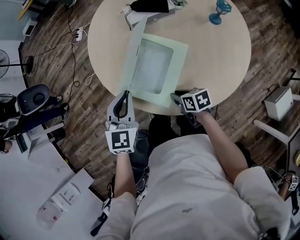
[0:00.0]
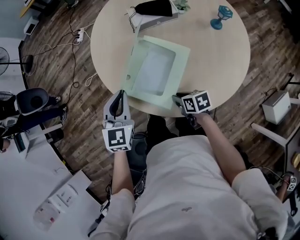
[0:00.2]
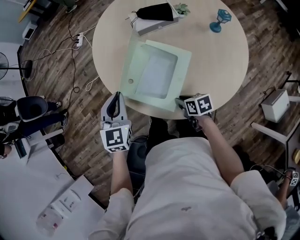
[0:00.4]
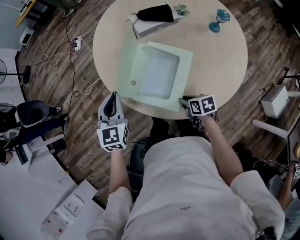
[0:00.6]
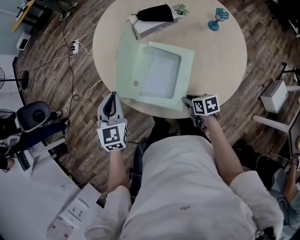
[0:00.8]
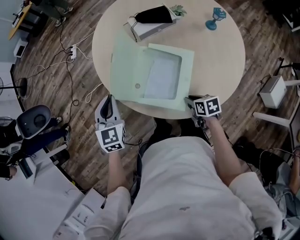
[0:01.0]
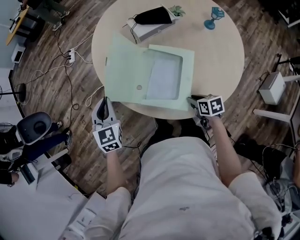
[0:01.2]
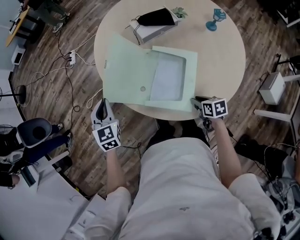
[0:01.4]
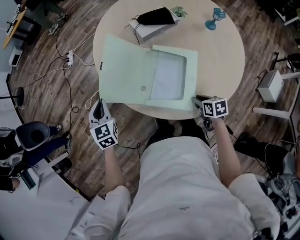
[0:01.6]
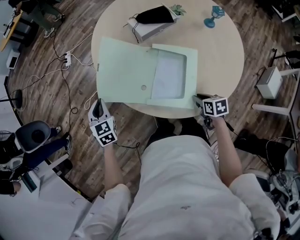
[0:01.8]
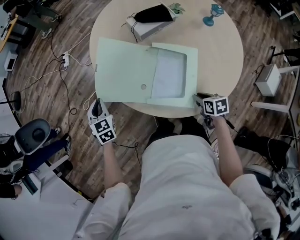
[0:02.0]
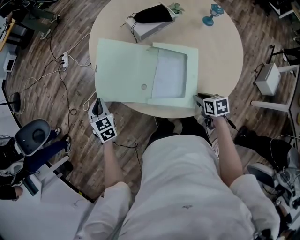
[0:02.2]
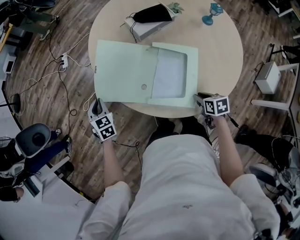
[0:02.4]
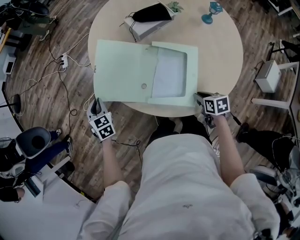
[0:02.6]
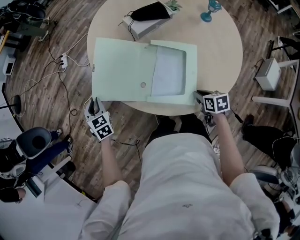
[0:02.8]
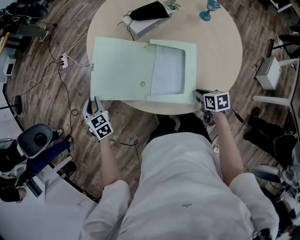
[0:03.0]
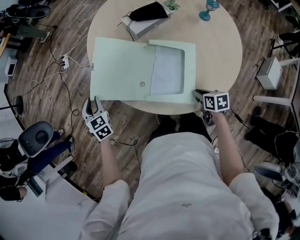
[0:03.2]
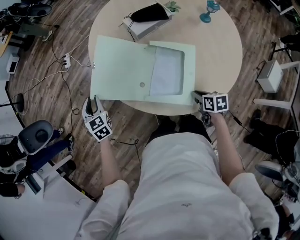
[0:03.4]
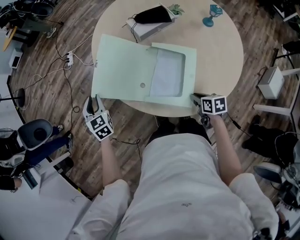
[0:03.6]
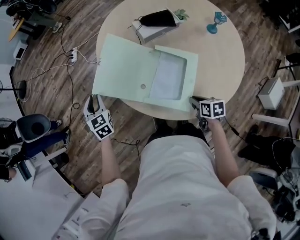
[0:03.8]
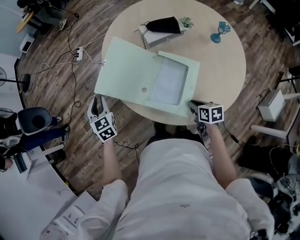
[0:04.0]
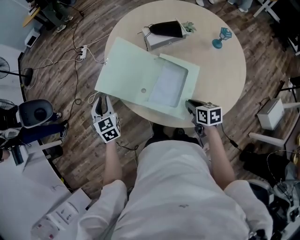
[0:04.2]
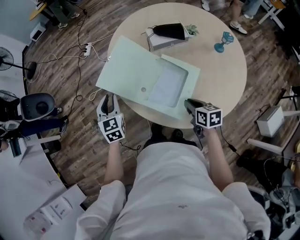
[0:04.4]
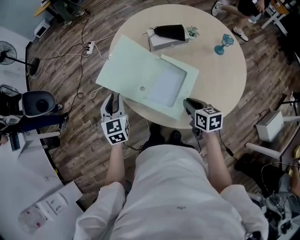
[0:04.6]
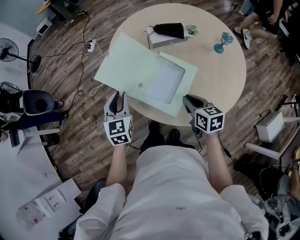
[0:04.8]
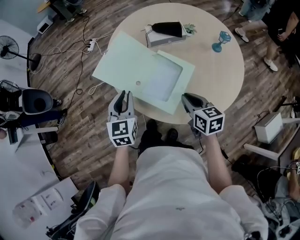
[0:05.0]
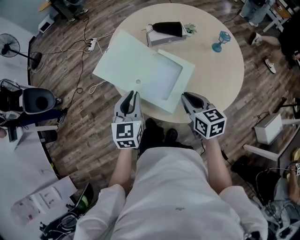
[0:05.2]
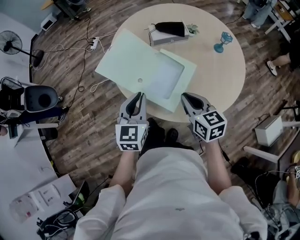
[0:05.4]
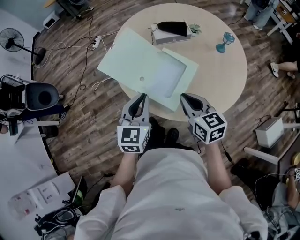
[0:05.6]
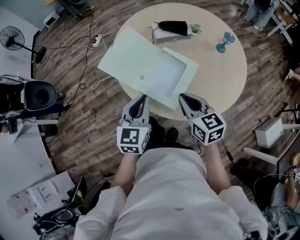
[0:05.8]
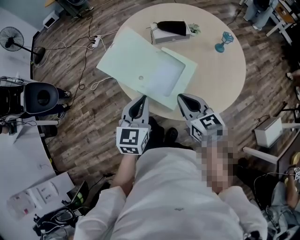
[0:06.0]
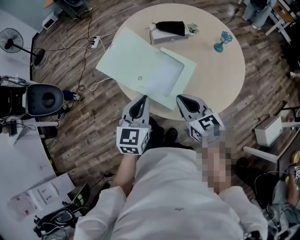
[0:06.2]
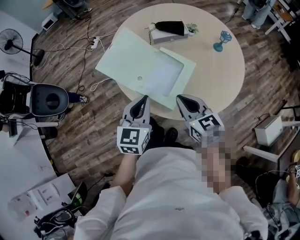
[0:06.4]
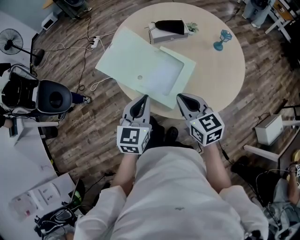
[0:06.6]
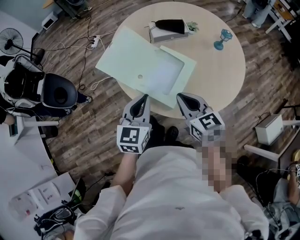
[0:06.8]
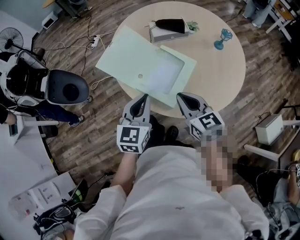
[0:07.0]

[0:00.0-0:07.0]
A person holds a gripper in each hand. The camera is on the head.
0:00.0 to 0:01.4: The left gripper shifts approximately 25 cm to the left and forward; the right gripper swivels some 20 degrees.
0:01.4 to 0:02.8: The left gripper moves downward, to the left and forward, roughly 15 cm.
0:02.8 to 0:04.2: The right gripper travels upward by roughly 5 cm, while the left gripper goes about 10 cm upward and backward.
0:04.2 to 0:05.6: The right gripper travels upward by some 15 cm, and rotates roughly 30 degrees; the left gripper goes some 30 cm backward, to the right and upward, and turns by roughly 20 degrees.
0:05.6 to 0:07.0: The grippers move only a little.

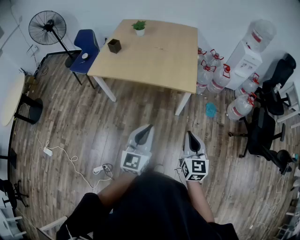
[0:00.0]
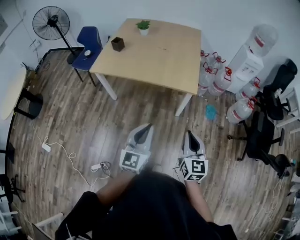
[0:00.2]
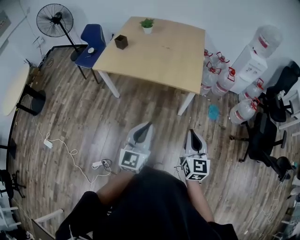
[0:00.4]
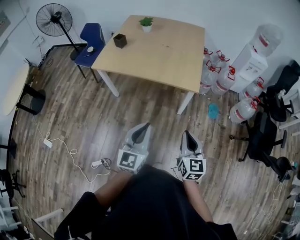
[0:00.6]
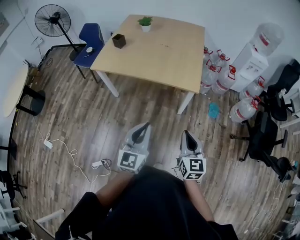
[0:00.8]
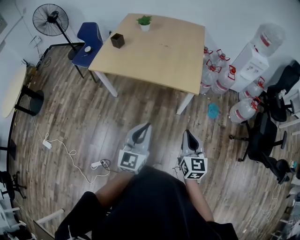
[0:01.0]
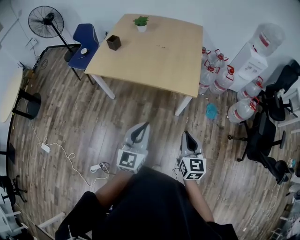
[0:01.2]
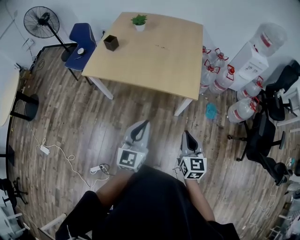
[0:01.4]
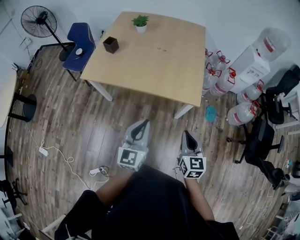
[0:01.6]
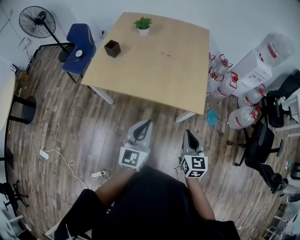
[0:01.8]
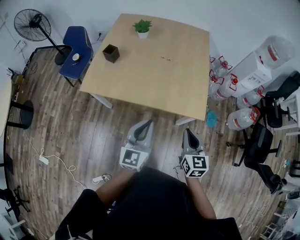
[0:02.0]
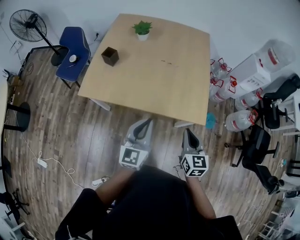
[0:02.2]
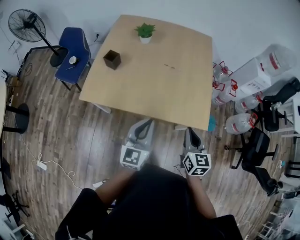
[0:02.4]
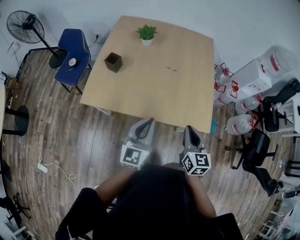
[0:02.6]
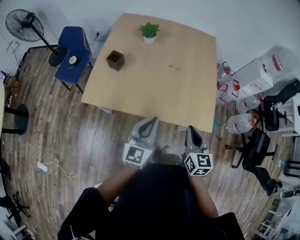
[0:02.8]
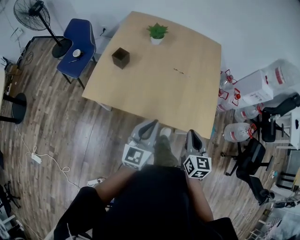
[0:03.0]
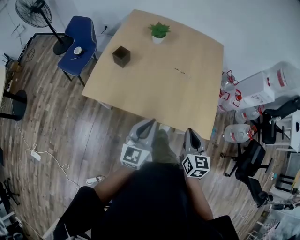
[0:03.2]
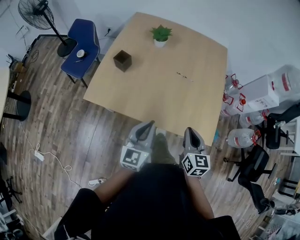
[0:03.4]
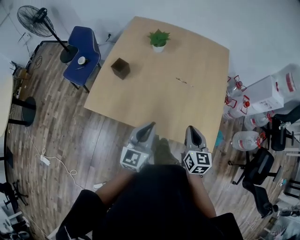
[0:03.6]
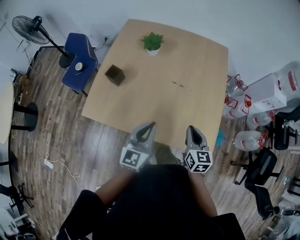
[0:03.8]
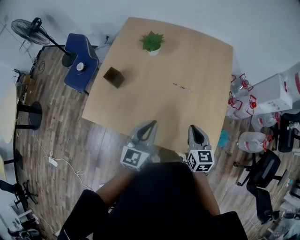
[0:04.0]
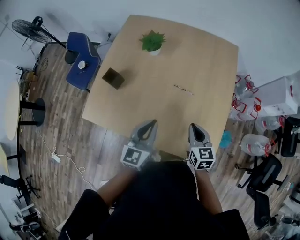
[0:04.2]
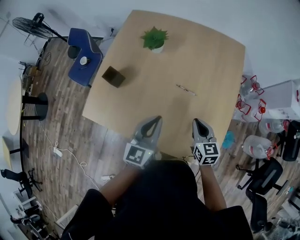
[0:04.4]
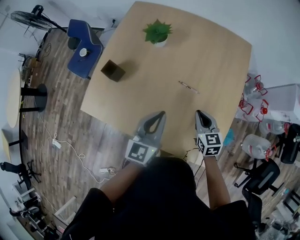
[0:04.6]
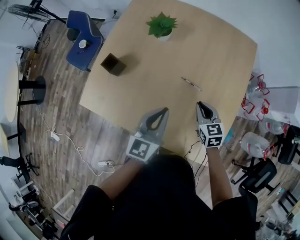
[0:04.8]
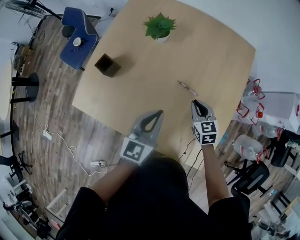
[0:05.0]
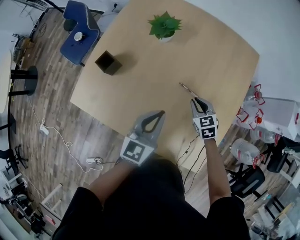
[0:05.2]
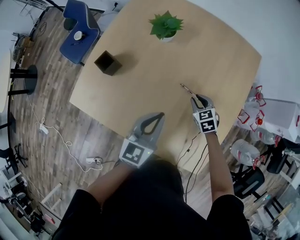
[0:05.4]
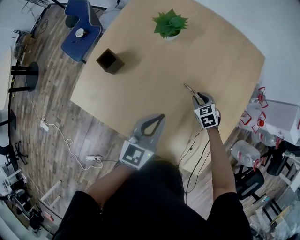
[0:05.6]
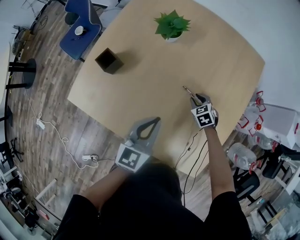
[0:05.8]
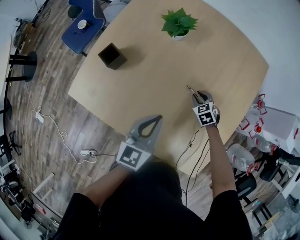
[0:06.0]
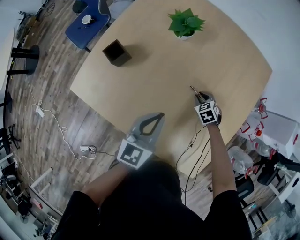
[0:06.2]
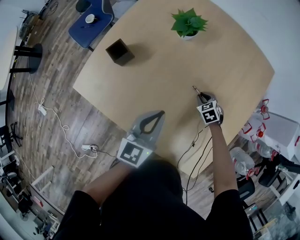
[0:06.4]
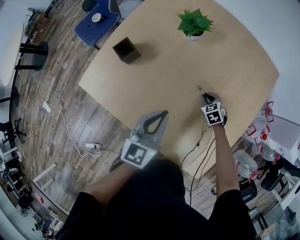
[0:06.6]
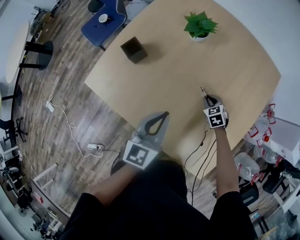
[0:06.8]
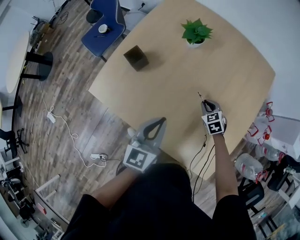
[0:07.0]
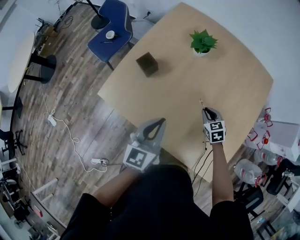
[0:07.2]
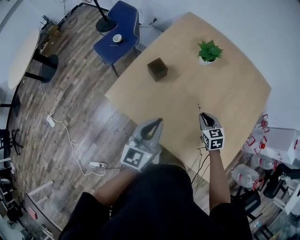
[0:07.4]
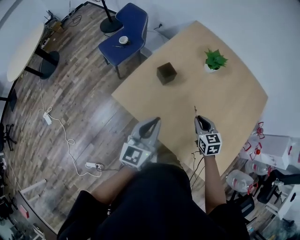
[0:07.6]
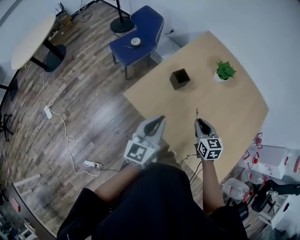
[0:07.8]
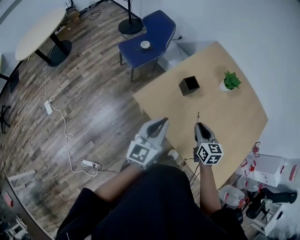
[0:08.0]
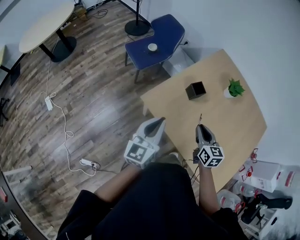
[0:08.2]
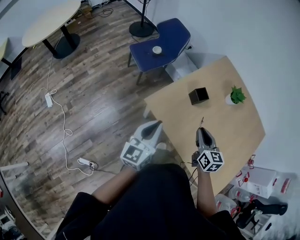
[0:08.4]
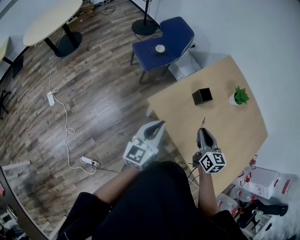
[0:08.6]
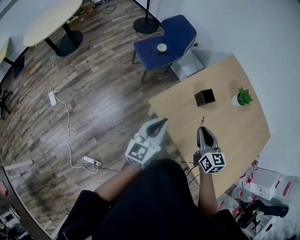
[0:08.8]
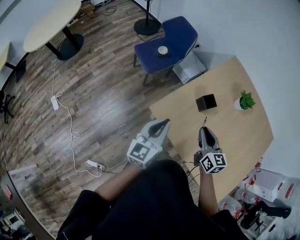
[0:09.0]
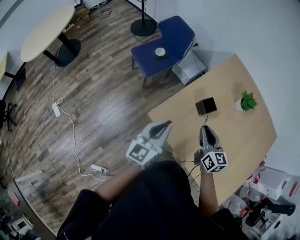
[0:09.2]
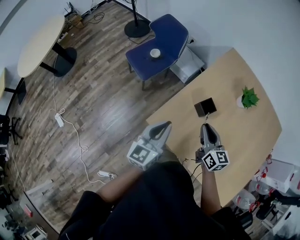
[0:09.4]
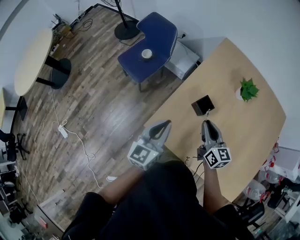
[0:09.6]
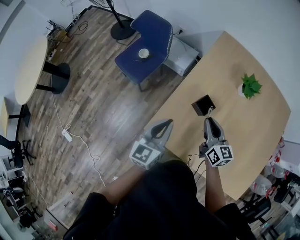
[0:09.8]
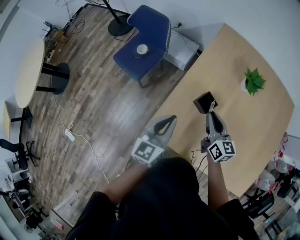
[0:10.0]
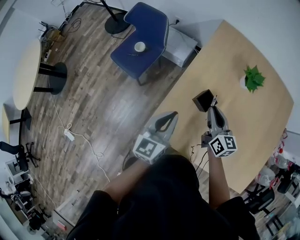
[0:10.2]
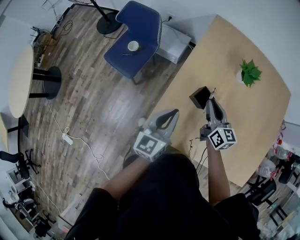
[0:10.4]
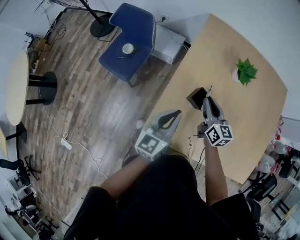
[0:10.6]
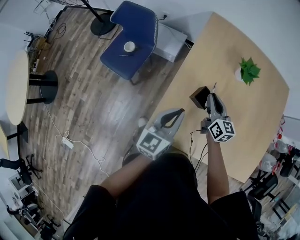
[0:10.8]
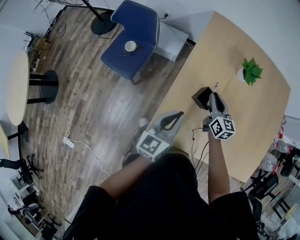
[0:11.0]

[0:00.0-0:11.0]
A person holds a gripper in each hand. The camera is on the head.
0:00.0 to 0:01.6: Both grippers move forward, about 20 cm.
0:01.6 to 0:03.2: Both grippers move forward and to the left, about 35 cm.
0:03.2 to 0:04.8: The right gripper shifts approximately 40 cm forward, and turns by some 30 degrees, while the left gripper shifts about 35 cm forward and to the right.
0:04.8 to 0:06.2: The right gripper heads downward and forward, covering roughly 25 cm, and swivels about 40 degrees, while the left gripper goes approximately 10 cm downward and to the left.
0:06.2 to 0:07.8: Both grippers move to the left and upward, about 40 cm. The left gripper rotates about 20 degrees, while the right gripper tilts its fingers some 30 degrees upward.
0:07.8 to 0:09.4: Both grippers travel together forward and to the left, about 25 cm. The right gripper changes its angle by approximately 20 degrees.
0:09.4 to 0:11.0: Both grippers travel together forward and downward, about 20 cm. The right gripper changes its angle by approximately 20 degrees. The left gripper turns by about 20 degrees.

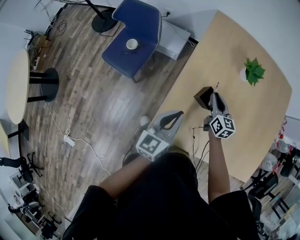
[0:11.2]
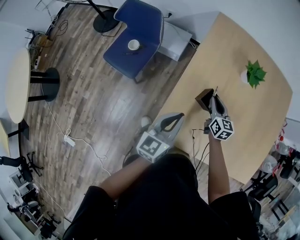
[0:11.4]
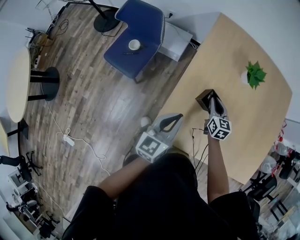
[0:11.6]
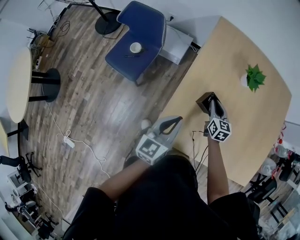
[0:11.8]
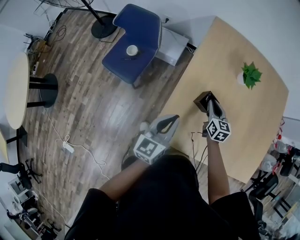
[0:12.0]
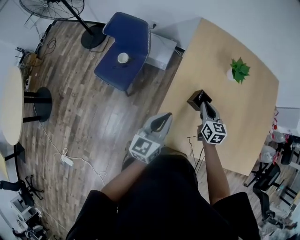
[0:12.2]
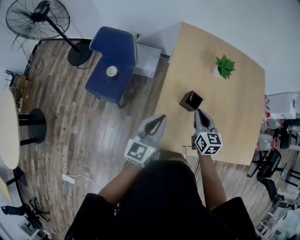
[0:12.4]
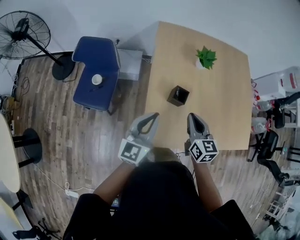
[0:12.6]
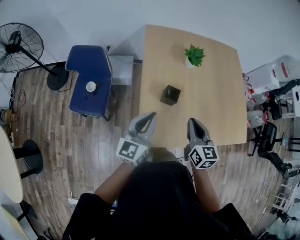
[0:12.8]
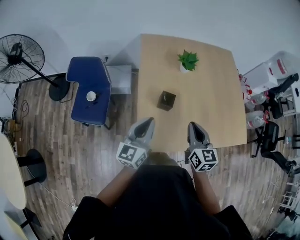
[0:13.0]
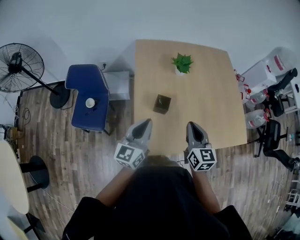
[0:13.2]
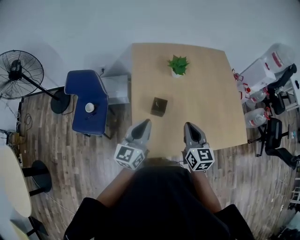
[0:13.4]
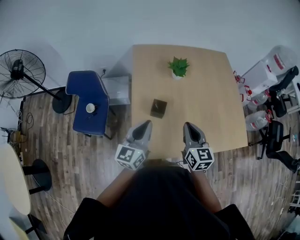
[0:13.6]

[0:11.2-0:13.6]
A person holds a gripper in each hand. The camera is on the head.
0:11.2 to 0:12.4: The right gripper shifts some 15 cm upward, backward and to the left; the left gripper goes approximately 10 cm to the left and upward.
0:12.4 to 0:13.6: The right gripper goes approximately 20 cm to the right, upward and backward, while the left gripper heads to the right and upward, covering roughly 15 cm.

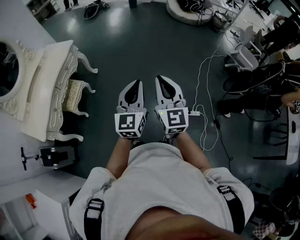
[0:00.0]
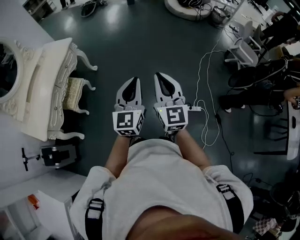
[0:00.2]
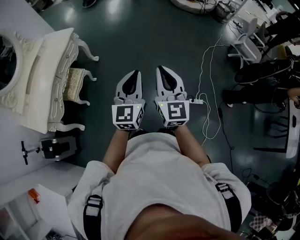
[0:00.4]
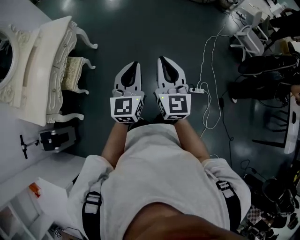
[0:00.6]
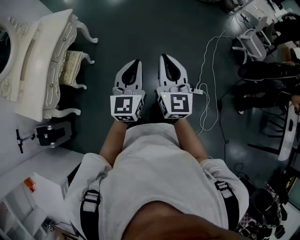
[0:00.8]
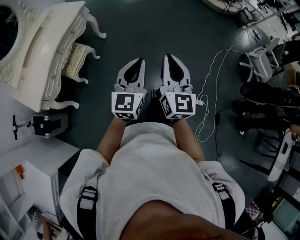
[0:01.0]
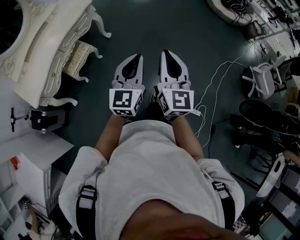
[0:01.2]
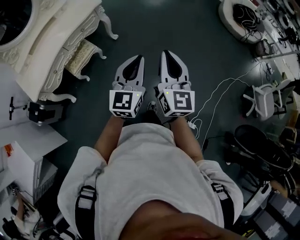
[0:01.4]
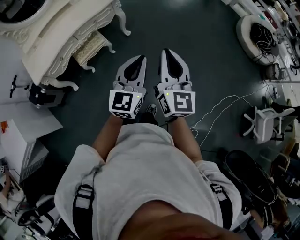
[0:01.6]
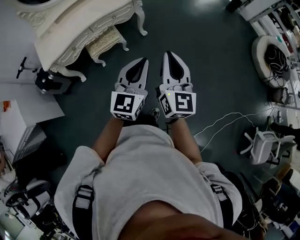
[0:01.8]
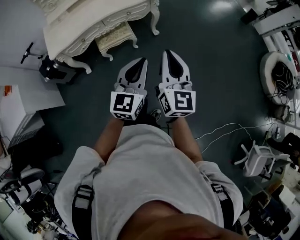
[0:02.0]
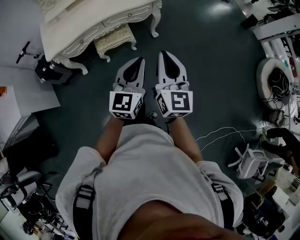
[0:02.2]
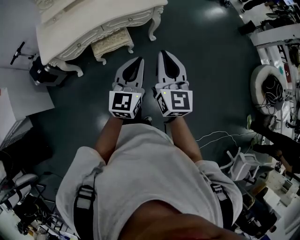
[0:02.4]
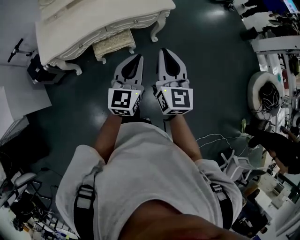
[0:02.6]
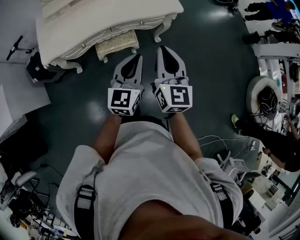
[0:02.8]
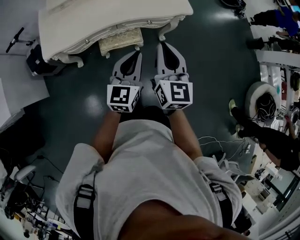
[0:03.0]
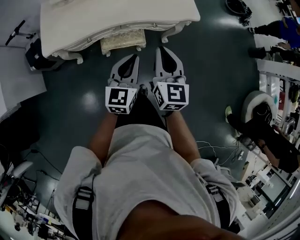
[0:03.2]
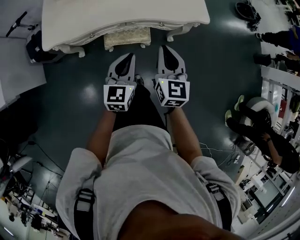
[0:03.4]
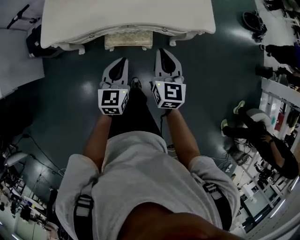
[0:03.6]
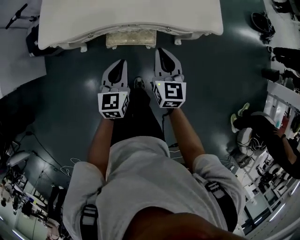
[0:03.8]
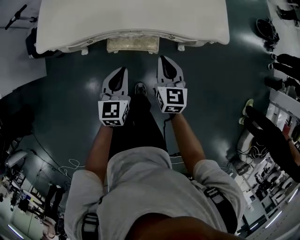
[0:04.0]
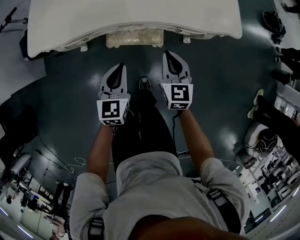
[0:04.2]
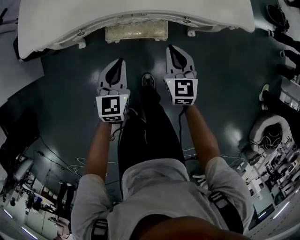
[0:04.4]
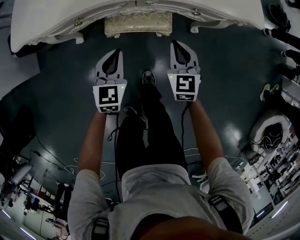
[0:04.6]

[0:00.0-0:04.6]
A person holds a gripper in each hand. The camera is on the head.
0:00.0 to 0:01.6: The right gripper ends up roughly 30 cm from where it was, and turns by about 30 degrees, while the left gripper moves some 25 cm, and swivels some 30 degrees.
0:01.6 to 0:03.0: The two grippers travel together, approximately 40 cm. The left gripper changes its angle by approximately 30 degrees. The right gripper changes its angle by roughly 30 degrees.
0:03.0 to 0:04.6: The two grippers go about 40 cm downward. The right gripper rotates about 30 degrees; the left gripper changes its angle by approximately 30 degrees.
